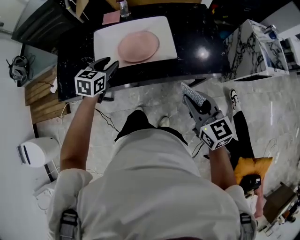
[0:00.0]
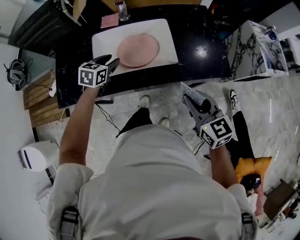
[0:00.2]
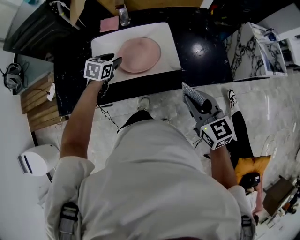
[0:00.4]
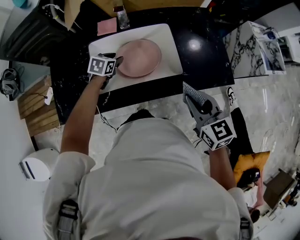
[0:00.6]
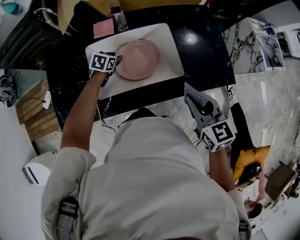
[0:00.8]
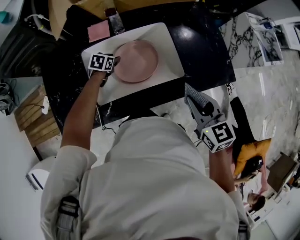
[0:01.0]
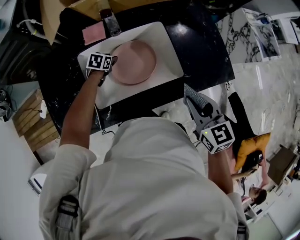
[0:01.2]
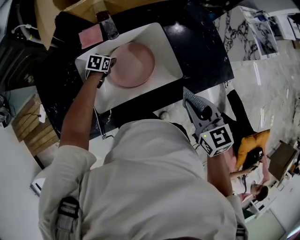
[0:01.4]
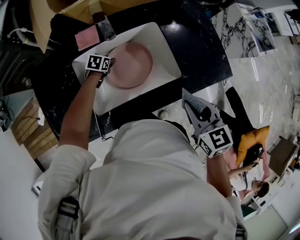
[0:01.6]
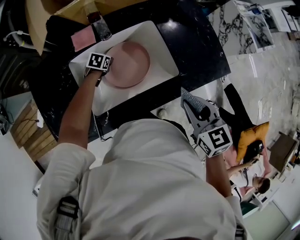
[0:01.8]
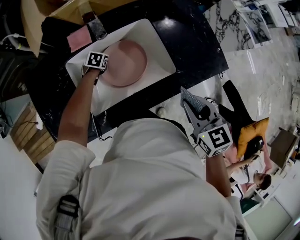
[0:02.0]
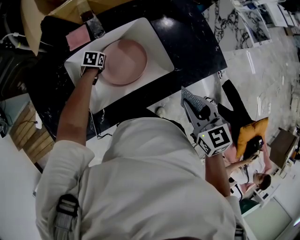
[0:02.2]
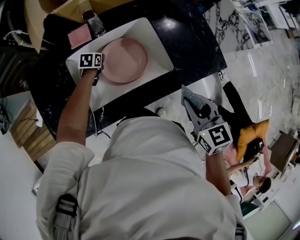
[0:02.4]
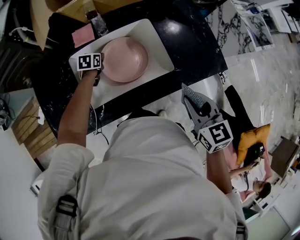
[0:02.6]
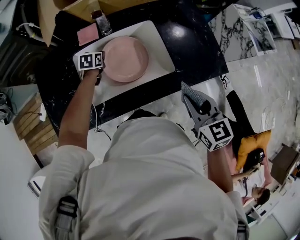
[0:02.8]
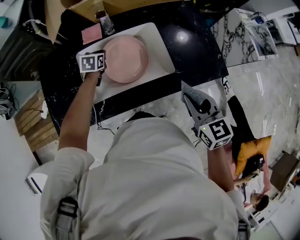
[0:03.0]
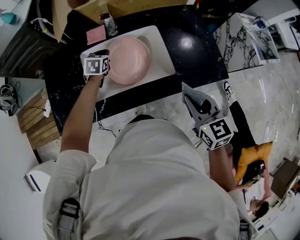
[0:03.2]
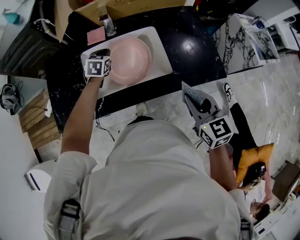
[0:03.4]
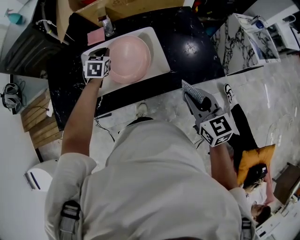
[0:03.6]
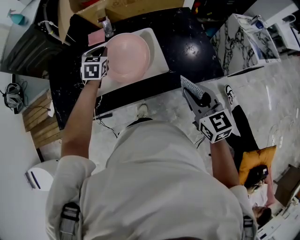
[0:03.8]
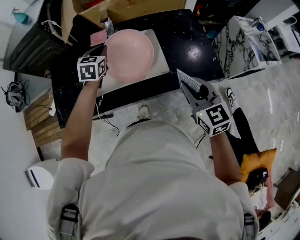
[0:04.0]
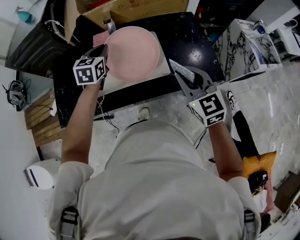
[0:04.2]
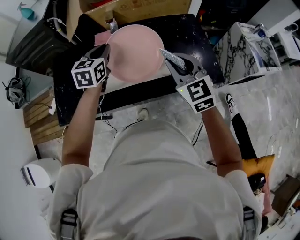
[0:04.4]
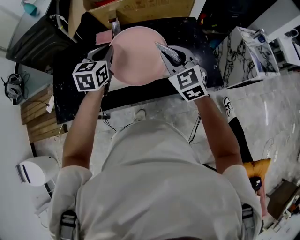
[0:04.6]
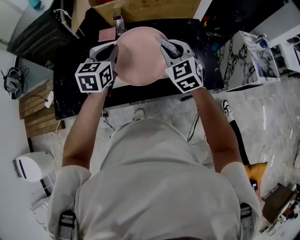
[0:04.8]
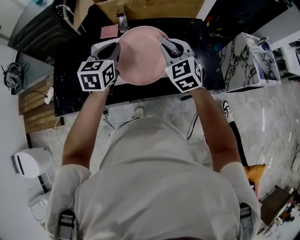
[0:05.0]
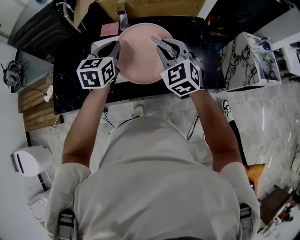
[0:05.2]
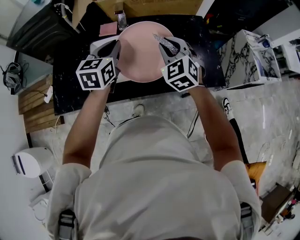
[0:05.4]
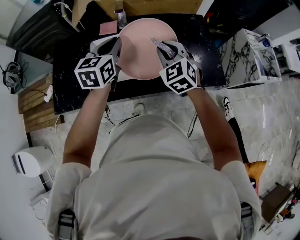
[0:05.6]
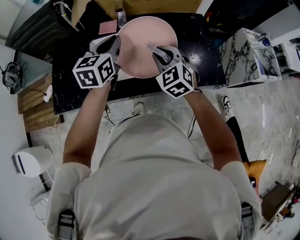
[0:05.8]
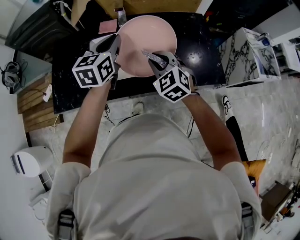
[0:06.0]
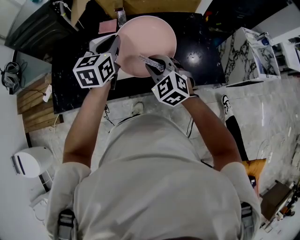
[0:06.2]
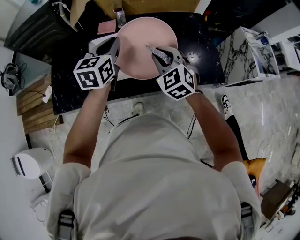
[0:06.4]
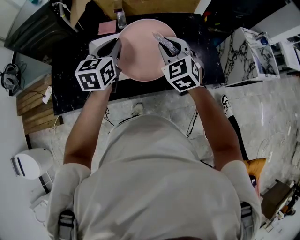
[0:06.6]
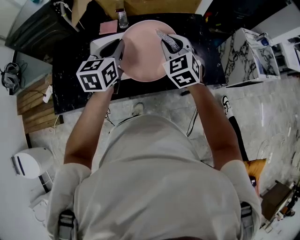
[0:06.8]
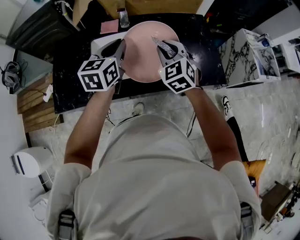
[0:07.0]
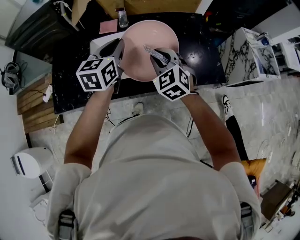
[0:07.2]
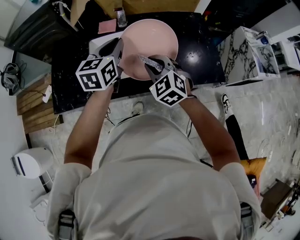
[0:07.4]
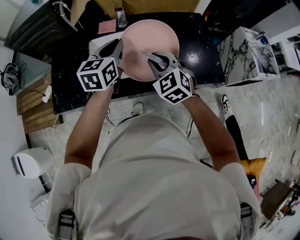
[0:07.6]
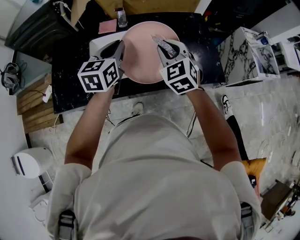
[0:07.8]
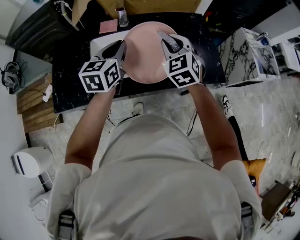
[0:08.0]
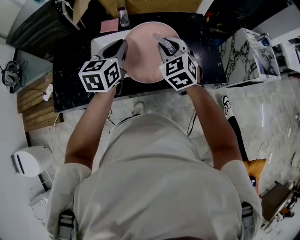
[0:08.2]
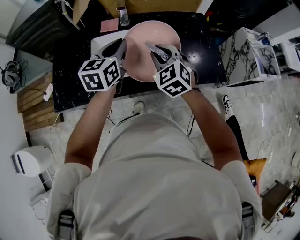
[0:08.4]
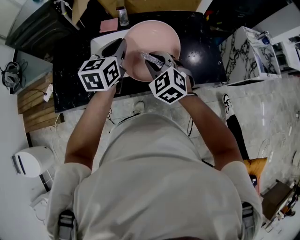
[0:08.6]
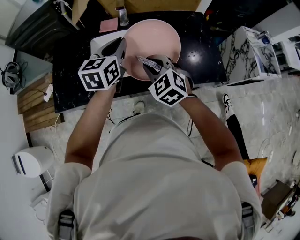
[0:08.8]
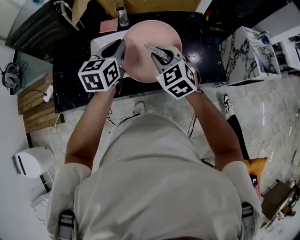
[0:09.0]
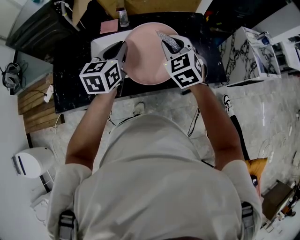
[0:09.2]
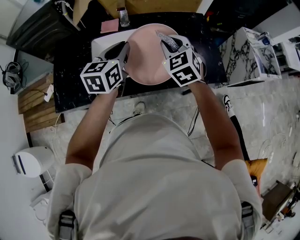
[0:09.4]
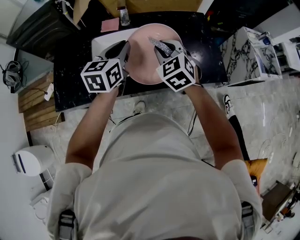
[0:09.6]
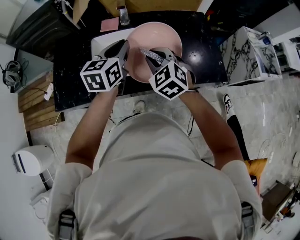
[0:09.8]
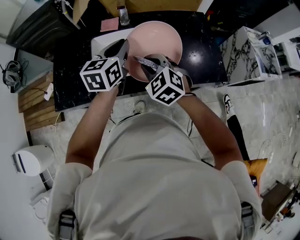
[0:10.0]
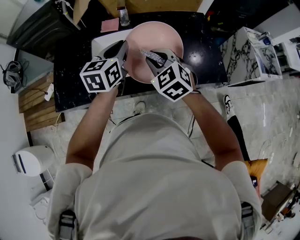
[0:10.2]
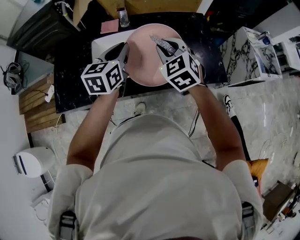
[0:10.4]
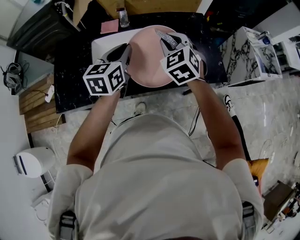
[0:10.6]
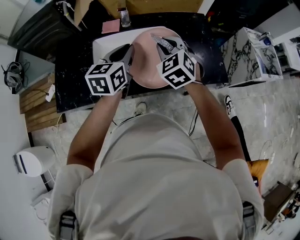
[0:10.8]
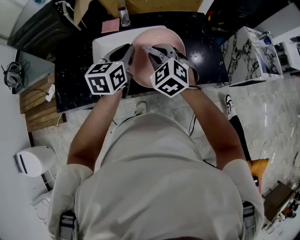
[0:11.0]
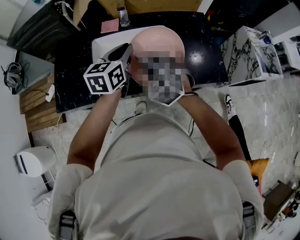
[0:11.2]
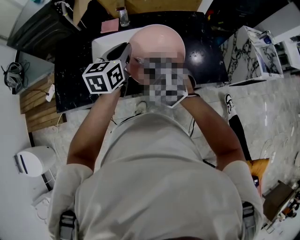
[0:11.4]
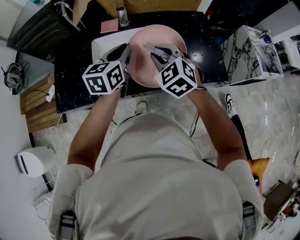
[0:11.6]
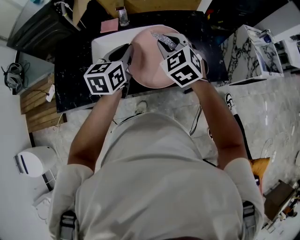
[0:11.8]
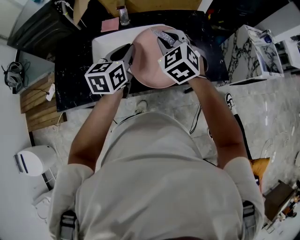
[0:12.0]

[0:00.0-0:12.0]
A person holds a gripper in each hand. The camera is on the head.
0:00.0 to 0:01.6: The right gripper shifts by about 15 cm, and rotates approximately 20 degrees; the left gripper moves downward, about 25 cm, and swivels roughly 30 degrees.
0:01.6 to 0:03.0: The left gripper travels upward by some 10 cm, rotates about 20 degrees, and closes up.
0:03.0 to 0:04.4: The right gripper heads forward and upward, covering about 10 cm, and rotates some 30 degrees; the left gripper is displaced upward and backward by some 25 cm, and rotates approximately 30 degrees.
0:04.4 to 0:06.0: The right gripper is displaced to the left and downward by roughly 10 cm, and turns by about 20 degrees.
0:07.6 to 0:09.0: The right gripper goes to the right and returns, some 5 cm each way.
0:09.0 to 0:10.4: The right gripper swings left and right, some 10 cm each way, with 2 reversals.
0:10.4 to 0:12.0: The right gripper moves roughly 5 cm backward and comes back.

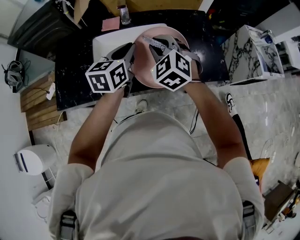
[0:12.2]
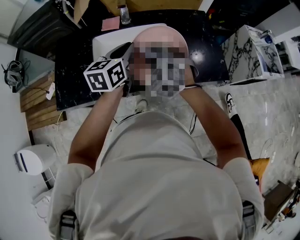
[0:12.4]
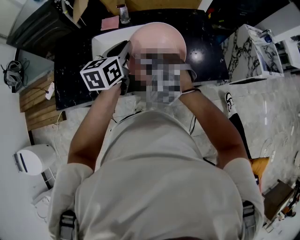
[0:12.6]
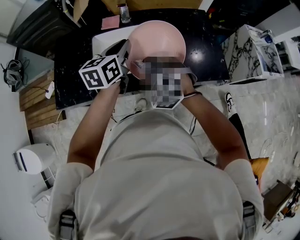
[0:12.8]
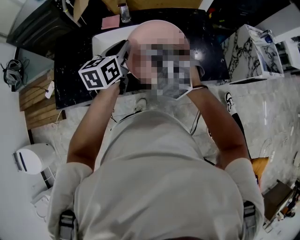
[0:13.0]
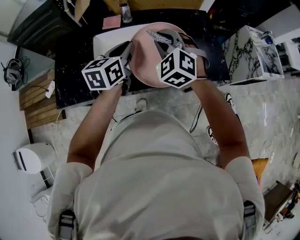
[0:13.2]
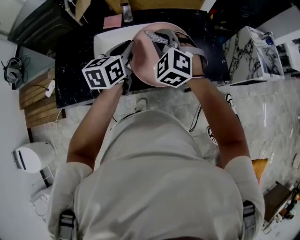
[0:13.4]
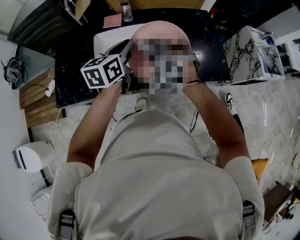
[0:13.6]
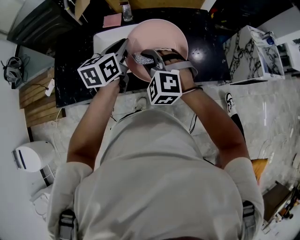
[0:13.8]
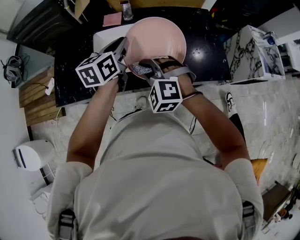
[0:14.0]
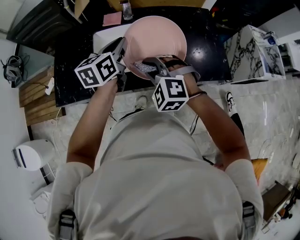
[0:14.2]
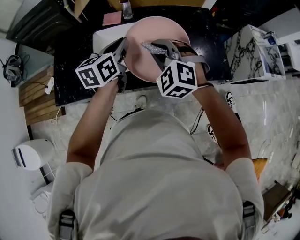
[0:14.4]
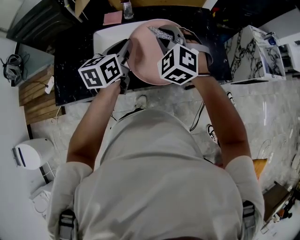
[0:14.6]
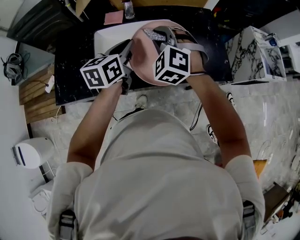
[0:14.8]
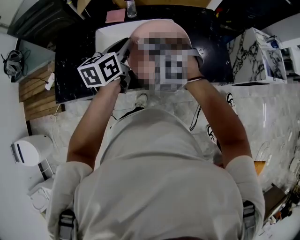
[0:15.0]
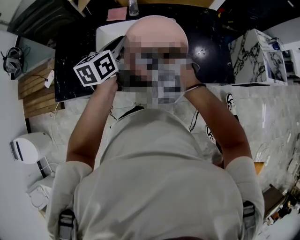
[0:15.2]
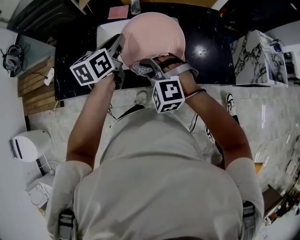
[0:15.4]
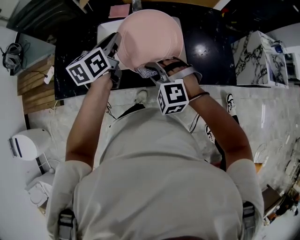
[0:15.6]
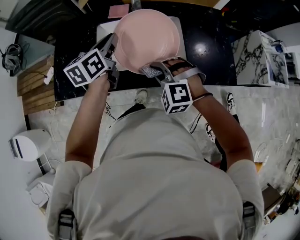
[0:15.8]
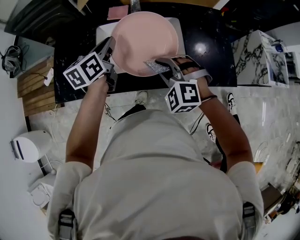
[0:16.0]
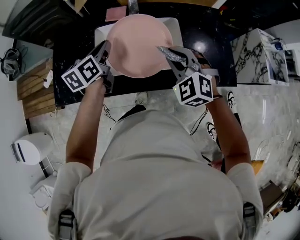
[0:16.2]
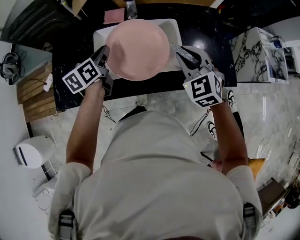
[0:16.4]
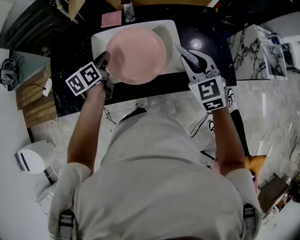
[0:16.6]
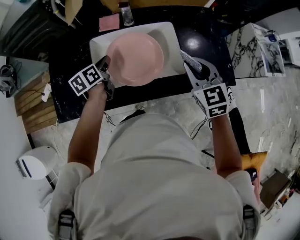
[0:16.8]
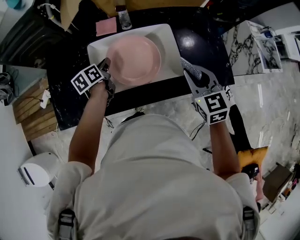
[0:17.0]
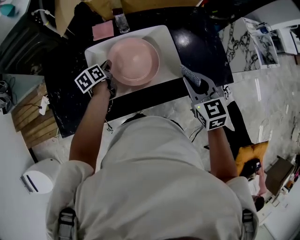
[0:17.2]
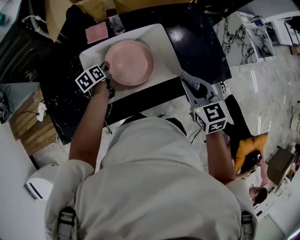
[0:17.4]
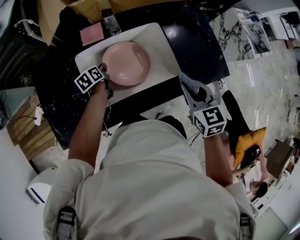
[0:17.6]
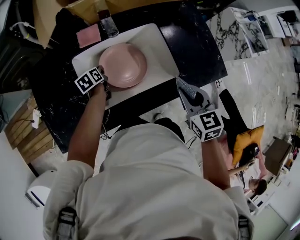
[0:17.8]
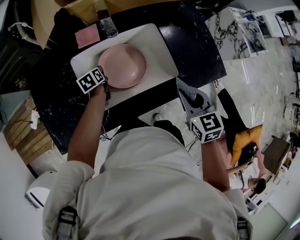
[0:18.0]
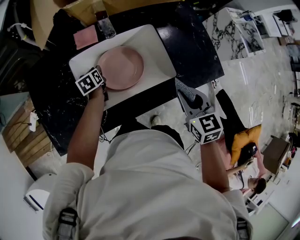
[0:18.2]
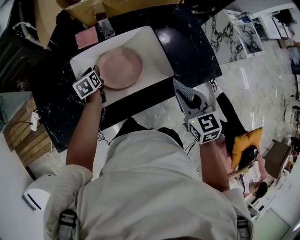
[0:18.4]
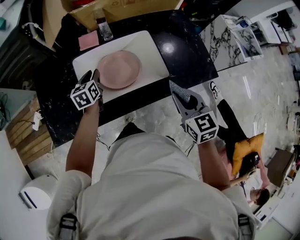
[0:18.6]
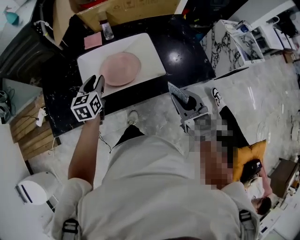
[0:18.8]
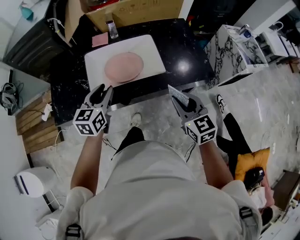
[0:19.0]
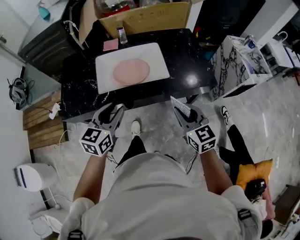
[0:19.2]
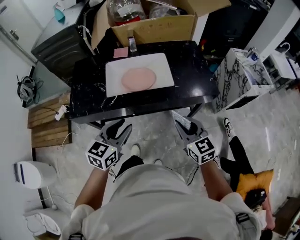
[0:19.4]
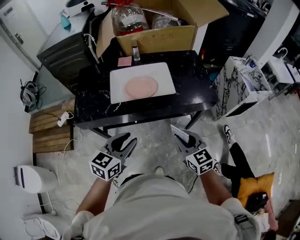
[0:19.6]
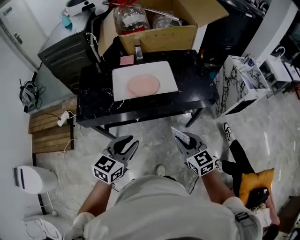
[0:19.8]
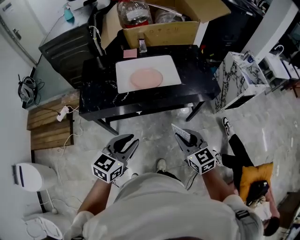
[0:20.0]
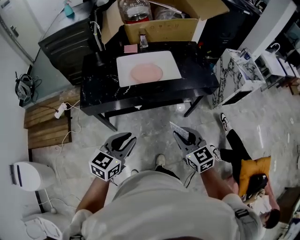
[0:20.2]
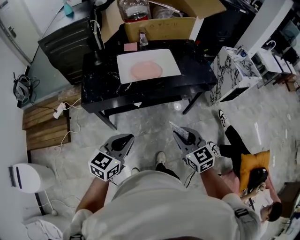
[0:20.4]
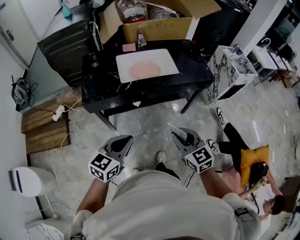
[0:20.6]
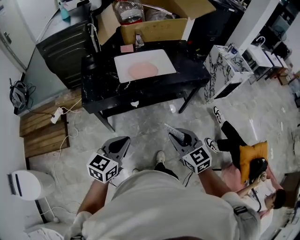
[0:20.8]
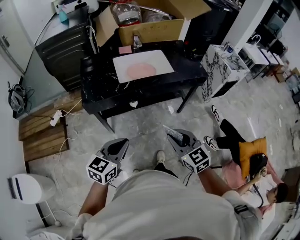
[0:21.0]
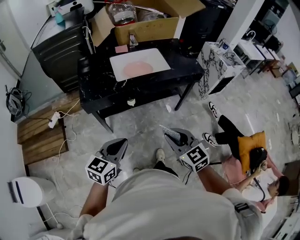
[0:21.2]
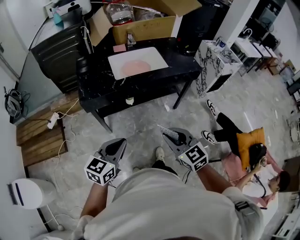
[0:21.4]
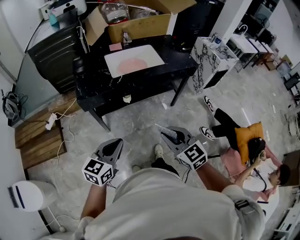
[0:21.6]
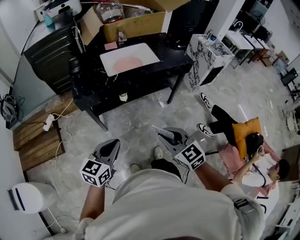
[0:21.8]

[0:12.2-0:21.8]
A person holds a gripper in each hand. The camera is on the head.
0:12.2 to 0:13.8: The right gripper moves forward and backward over approximately 10 cm, changing direction 2 times, and rotates roughly 20 degrees.
0:13.8 to 0:15.4: The right gripper moves approximately 5 cm forward and comes back.
0:15.4 to 0:17.0: The left gripper travels downward, to the left and forward by about 20 cm, and turns by approximately 20 degrees, while the right gripper moves to the right, about 15 cm, and twists some 70 degrees clockwise, seen from behind.
0:17.0 to 0:18.6: The right gripper travels backward by approximately 10 cm; the left gripper reaches some 10 cm downward, then returns, changes its angle by about 30 degrees, and opens its fingers.
0:18.6 to 0:20.2: The right gripper shifts approximately 30 cm backward. Meanwhile the left gripper goes some 50 cm backward, and turns by roughly 30 degrees.
0:20.2 to 0:21.8: Both grippers travel together backward and to the left, roughly 20 cm. The left gripper closes its fingers.

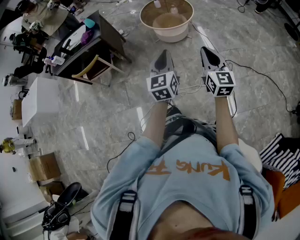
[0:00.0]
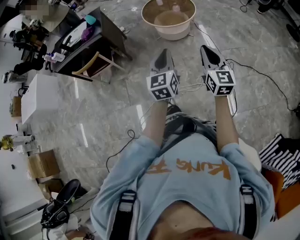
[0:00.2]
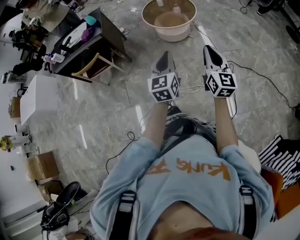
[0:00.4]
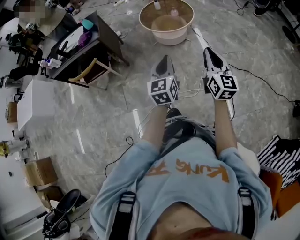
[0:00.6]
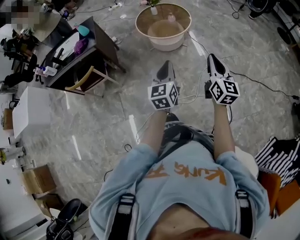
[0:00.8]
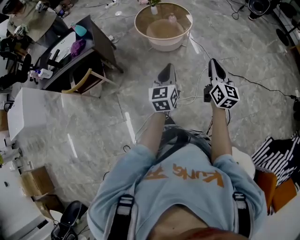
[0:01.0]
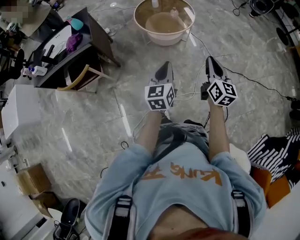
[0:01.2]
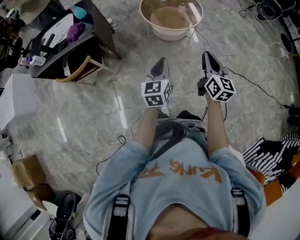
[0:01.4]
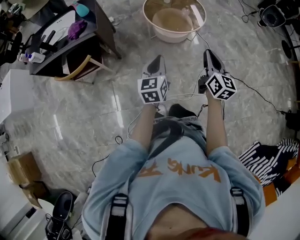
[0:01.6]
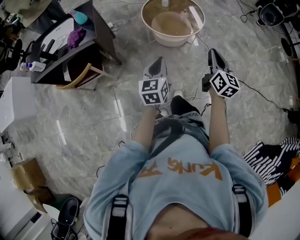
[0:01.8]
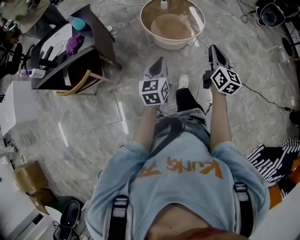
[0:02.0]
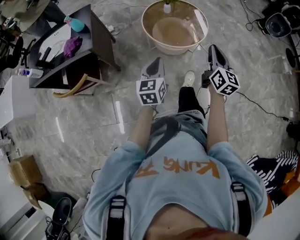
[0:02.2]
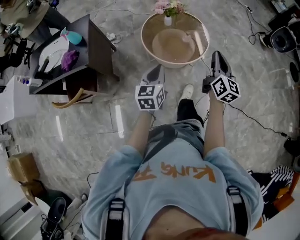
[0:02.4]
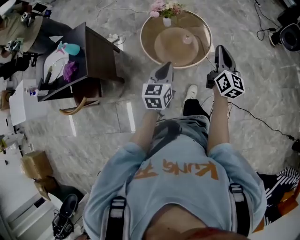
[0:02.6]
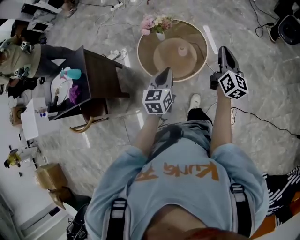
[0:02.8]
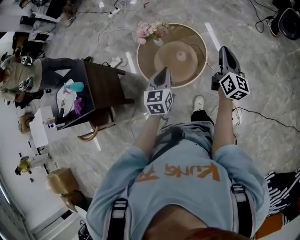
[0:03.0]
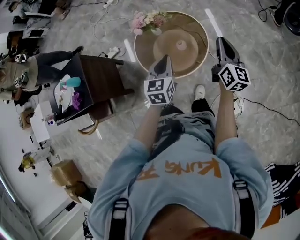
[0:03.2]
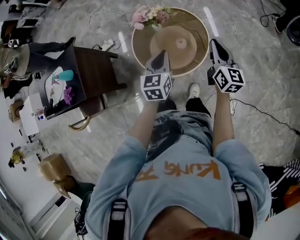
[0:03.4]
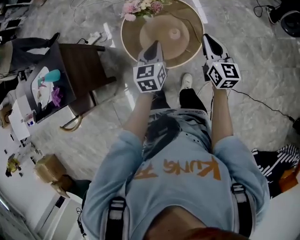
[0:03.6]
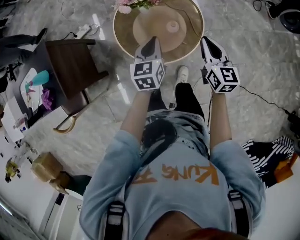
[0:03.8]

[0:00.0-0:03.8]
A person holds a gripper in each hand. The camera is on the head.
0:00.0 to 0:01.2: The right gripper heads forward and to the left, covering some 15 cm, while the left gripper is displaced forward, to the left and downward by some 20 cm.
0:01.2 to 0:02.6: The pair of grippers is taken forward, some 40 cm.
0:02.6 to 0:03.8: Both grippers move forward and downward, about 20 cm. The right gripper moves about 10 cm to the right and comes back, and turns by approximately 20 degrees.
